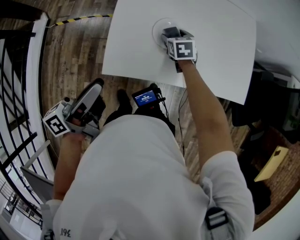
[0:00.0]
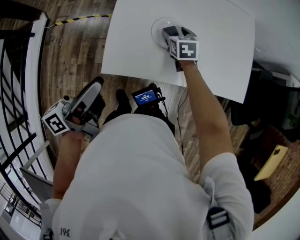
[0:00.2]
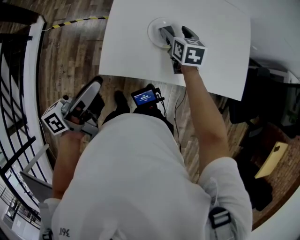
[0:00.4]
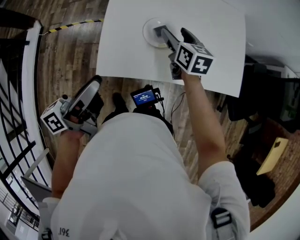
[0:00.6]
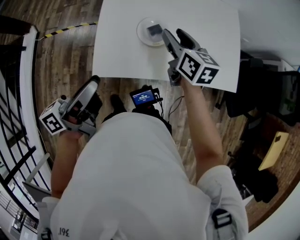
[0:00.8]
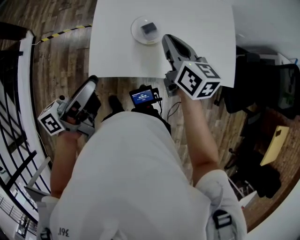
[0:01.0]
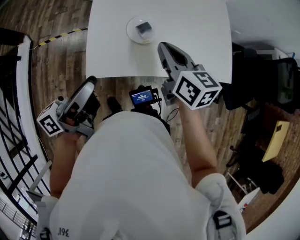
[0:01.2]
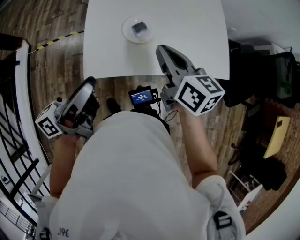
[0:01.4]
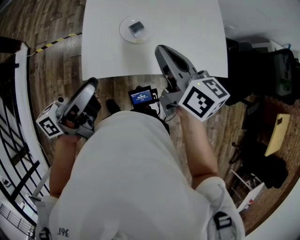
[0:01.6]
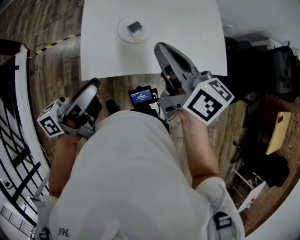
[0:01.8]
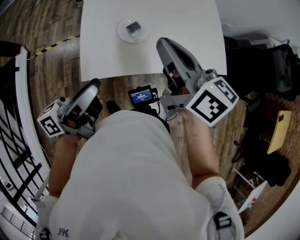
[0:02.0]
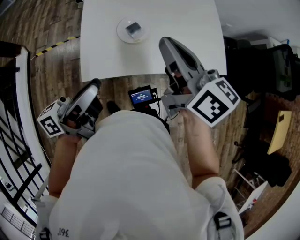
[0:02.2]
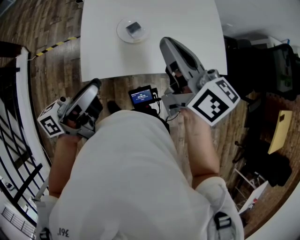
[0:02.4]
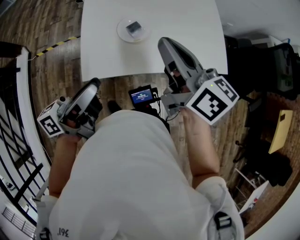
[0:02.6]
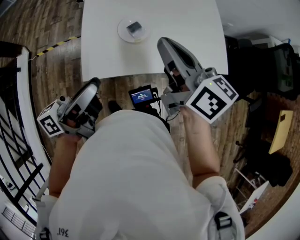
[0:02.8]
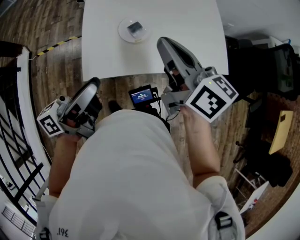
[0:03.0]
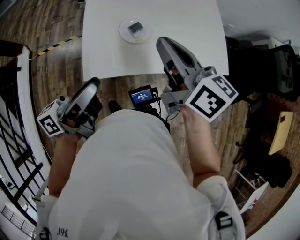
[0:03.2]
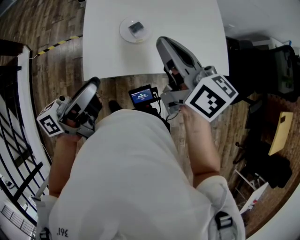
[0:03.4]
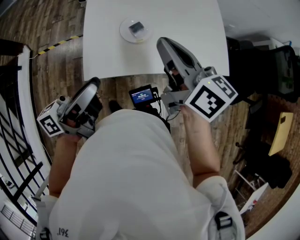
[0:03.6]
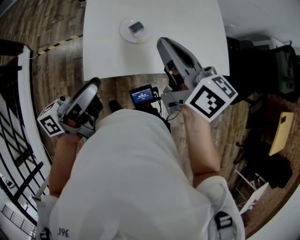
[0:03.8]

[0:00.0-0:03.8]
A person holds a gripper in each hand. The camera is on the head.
0:00.0 to 0:01.2: The right gripper shifts some 25 cm upward and backward, points its fingers about 30 degrees further upward, and closes up; the left gripper ends up approximately 5 cm from where it was.
0:01.2 to 0:02.6: The right gripper travels upward by approximately 10 cm.
0:02.6 to 0:03.8: The grippers move only a little.

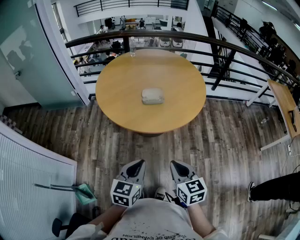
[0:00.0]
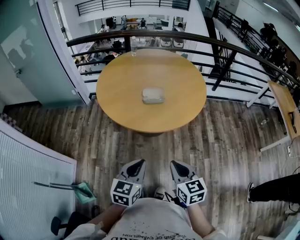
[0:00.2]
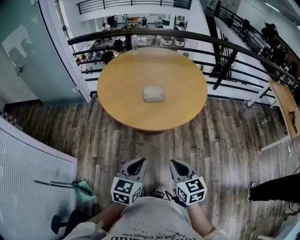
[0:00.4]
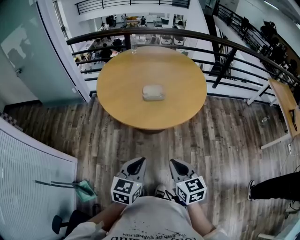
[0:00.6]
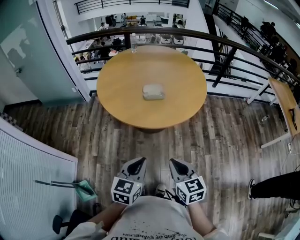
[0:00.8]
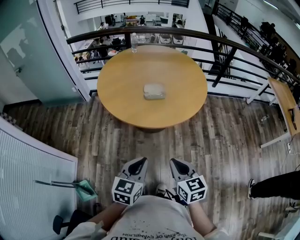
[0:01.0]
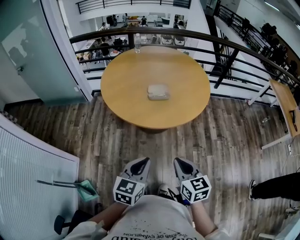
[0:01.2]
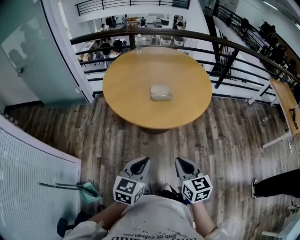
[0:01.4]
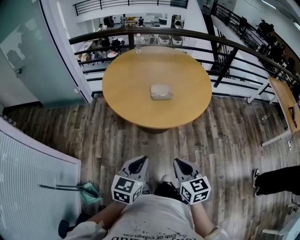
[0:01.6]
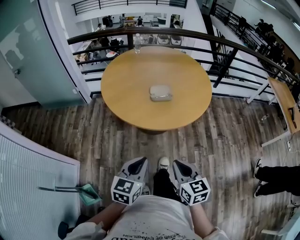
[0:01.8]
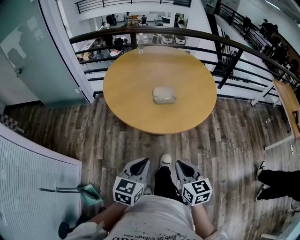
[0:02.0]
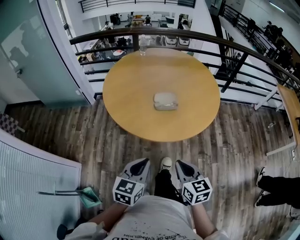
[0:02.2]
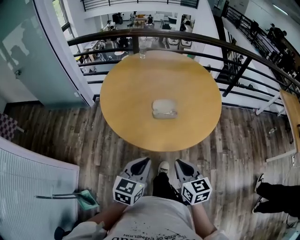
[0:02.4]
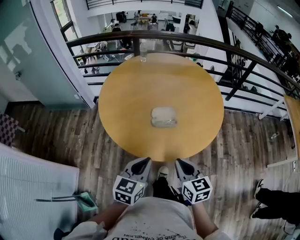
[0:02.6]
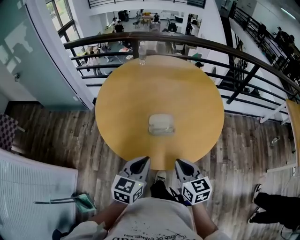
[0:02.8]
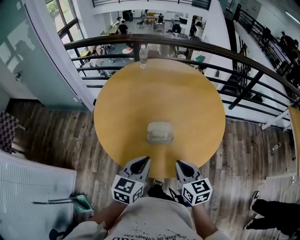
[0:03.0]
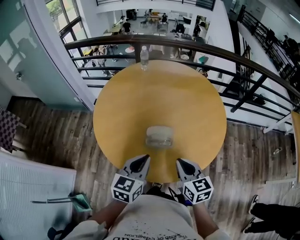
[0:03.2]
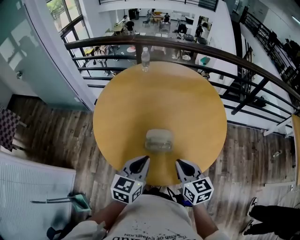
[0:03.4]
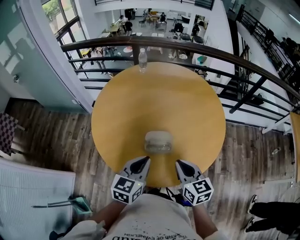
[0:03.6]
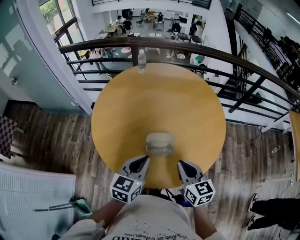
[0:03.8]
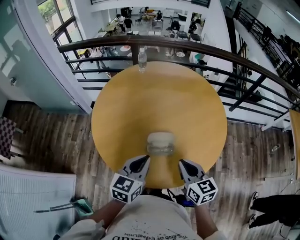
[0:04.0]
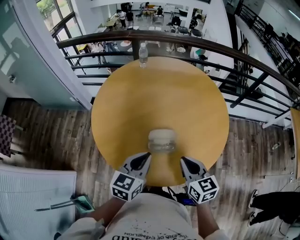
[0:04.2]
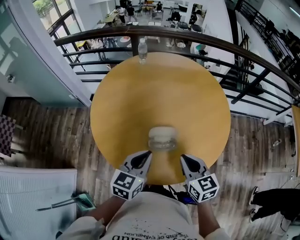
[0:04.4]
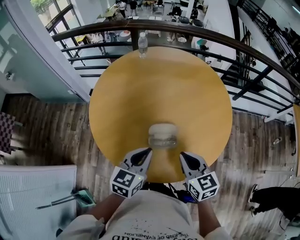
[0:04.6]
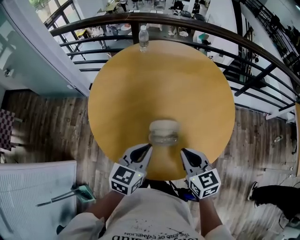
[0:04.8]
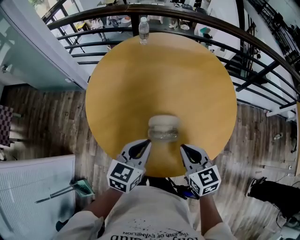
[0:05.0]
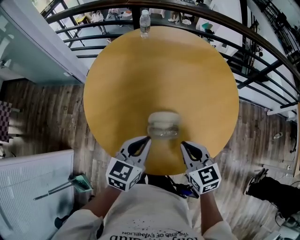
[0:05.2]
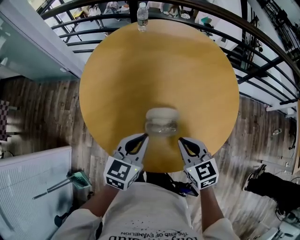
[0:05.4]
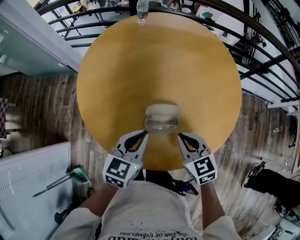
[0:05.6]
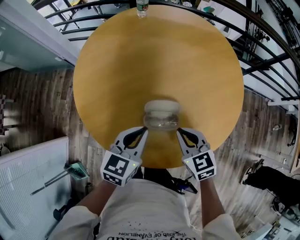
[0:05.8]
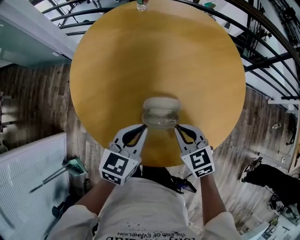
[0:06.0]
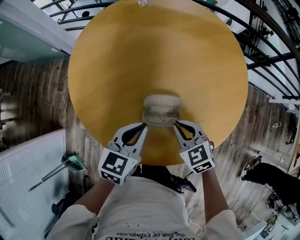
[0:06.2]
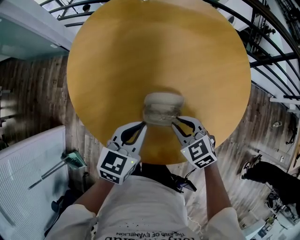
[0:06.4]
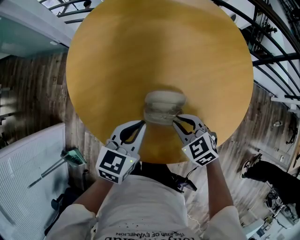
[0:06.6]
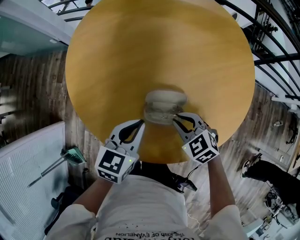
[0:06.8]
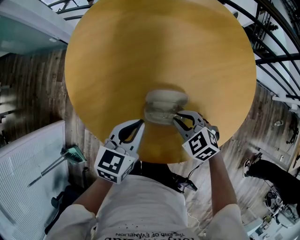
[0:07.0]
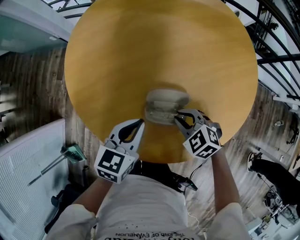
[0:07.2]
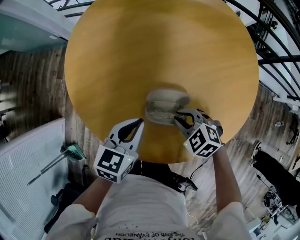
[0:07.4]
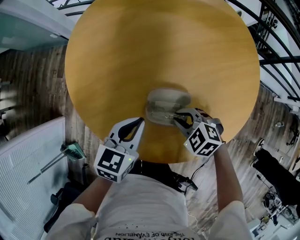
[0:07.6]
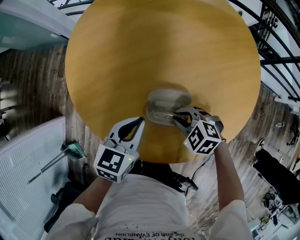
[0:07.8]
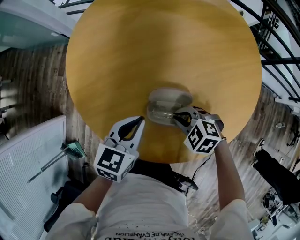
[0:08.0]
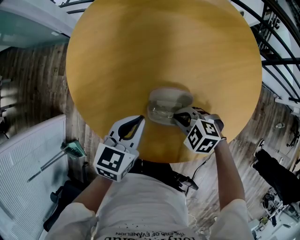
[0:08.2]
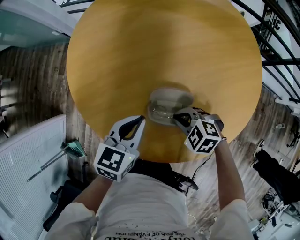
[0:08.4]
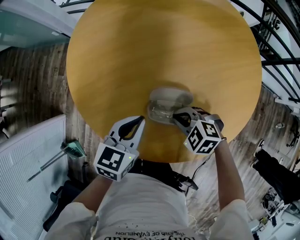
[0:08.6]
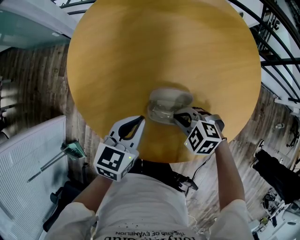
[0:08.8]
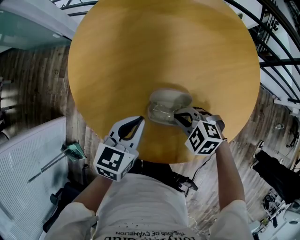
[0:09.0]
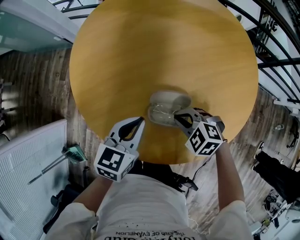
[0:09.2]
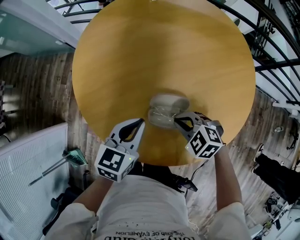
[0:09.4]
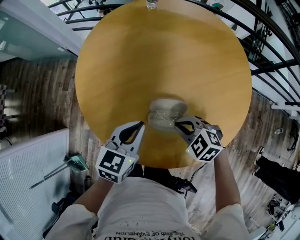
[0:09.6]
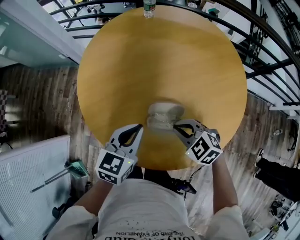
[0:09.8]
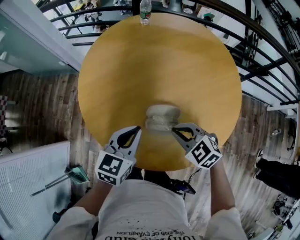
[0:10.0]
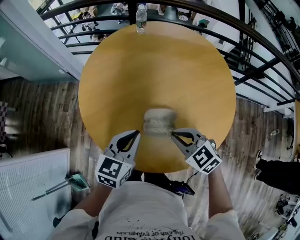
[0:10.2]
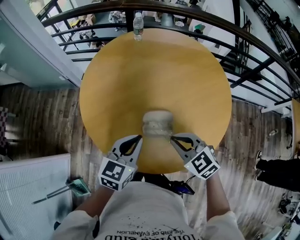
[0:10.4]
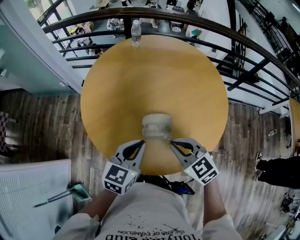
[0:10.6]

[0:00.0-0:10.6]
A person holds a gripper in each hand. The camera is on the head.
0:00.0 to 0:01.6: The two grippers go roughly 5 cm to the left.
0:01.6 to 0:03.0: The two grippers go about 35 cm forward.
0:03.0 to 0:04.6: Both grippers move forward, approximately 10 cm.
0:04.6 to 0:06.0: Both grippers move downward and forward, some 15 cm. The right gripper changes its angle by about 20 degrees.
0:06.0 to 0:07.6: The left gripper goes some 5 cm downward. The right gripper travels downward by approximately 10 cm, and changes its angle by roughly 40 degrees.
0:07.6 to 0:09.0: There are only small adjustments of the grippers.
0:09.0 to 0:10.6: Both grippers travel together upward and backward, roughly 20 cm. The right gripper turns by roughly 40 degrees.

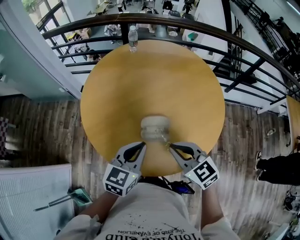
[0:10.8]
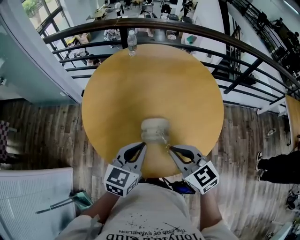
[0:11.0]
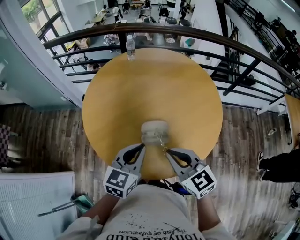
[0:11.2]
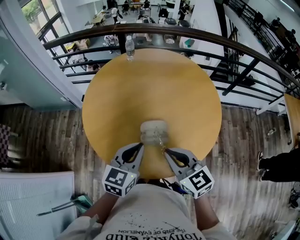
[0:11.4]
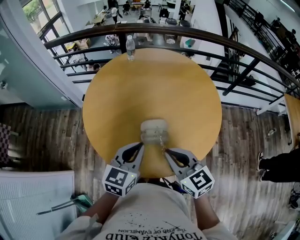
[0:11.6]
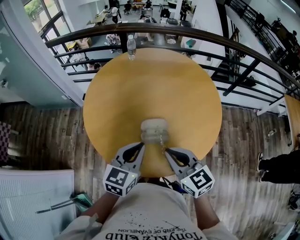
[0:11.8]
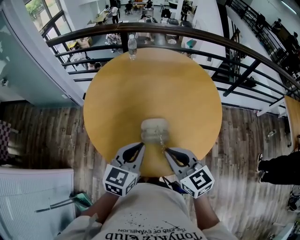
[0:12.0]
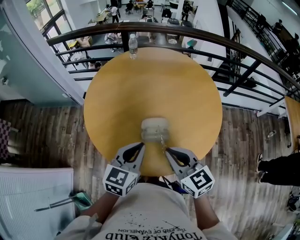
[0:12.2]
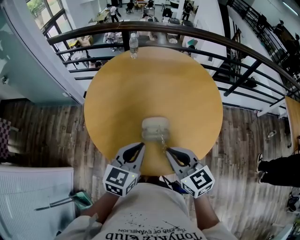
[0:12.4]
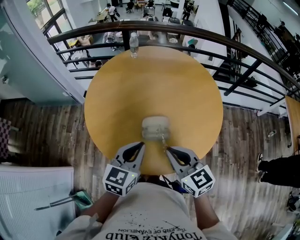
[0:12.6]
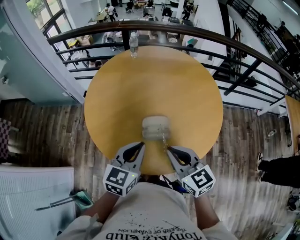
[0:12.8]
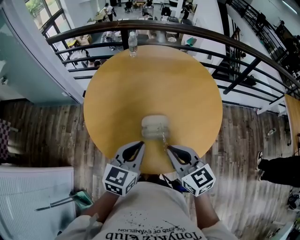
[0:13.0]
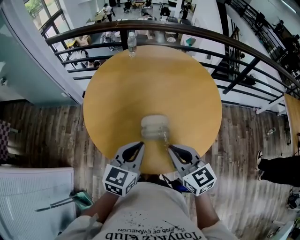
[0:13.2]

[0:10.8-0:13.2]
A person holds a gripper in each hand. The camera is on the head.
0:10.8 to 0:12.0: The right gripper changes place by some 5 cm.
0:12.0 to 0:13.2: The two grippers keep their place.

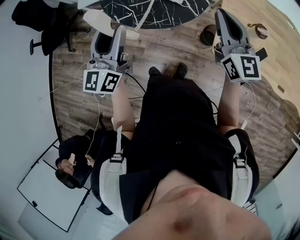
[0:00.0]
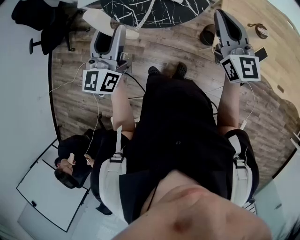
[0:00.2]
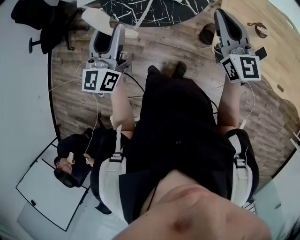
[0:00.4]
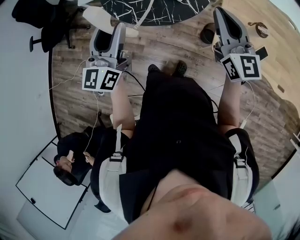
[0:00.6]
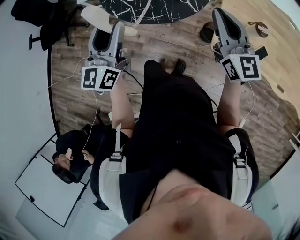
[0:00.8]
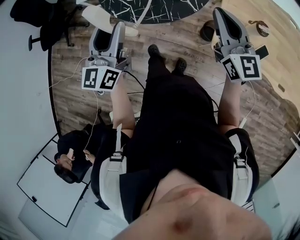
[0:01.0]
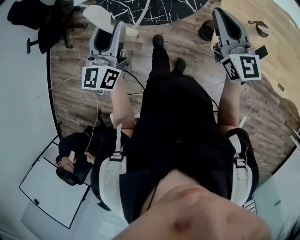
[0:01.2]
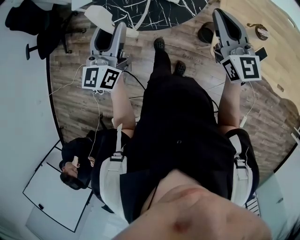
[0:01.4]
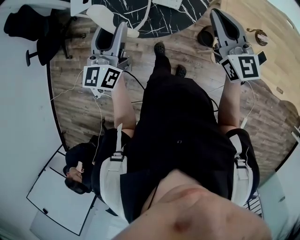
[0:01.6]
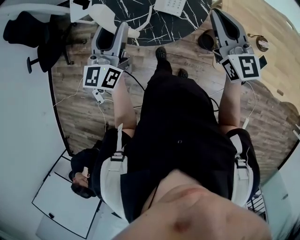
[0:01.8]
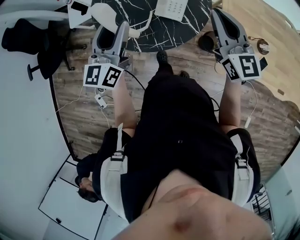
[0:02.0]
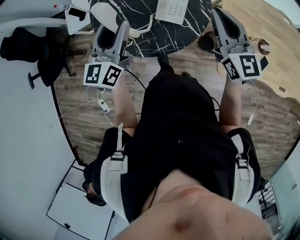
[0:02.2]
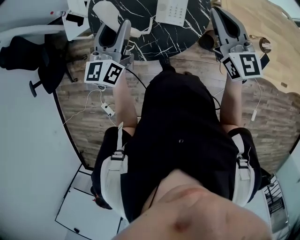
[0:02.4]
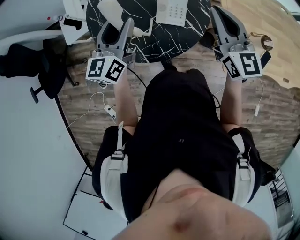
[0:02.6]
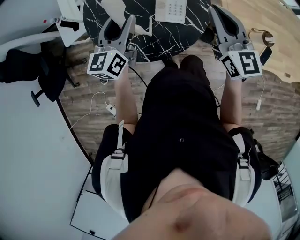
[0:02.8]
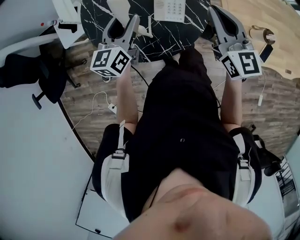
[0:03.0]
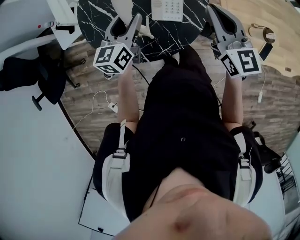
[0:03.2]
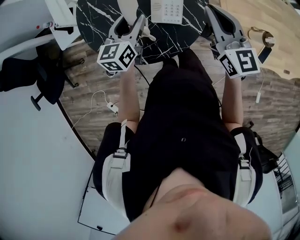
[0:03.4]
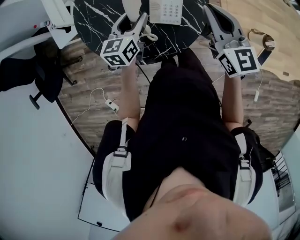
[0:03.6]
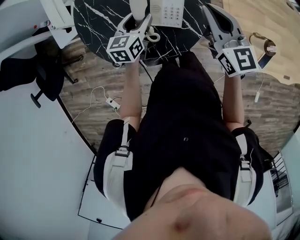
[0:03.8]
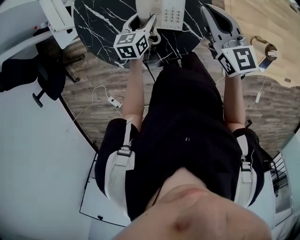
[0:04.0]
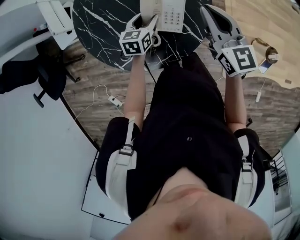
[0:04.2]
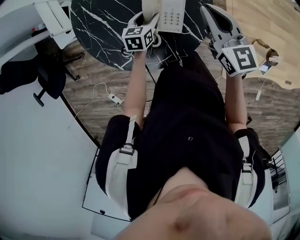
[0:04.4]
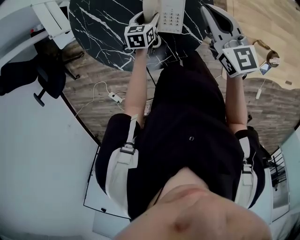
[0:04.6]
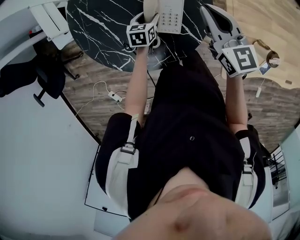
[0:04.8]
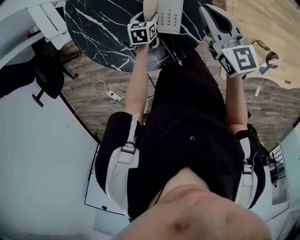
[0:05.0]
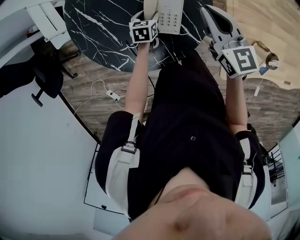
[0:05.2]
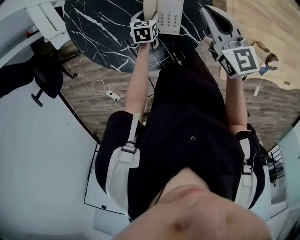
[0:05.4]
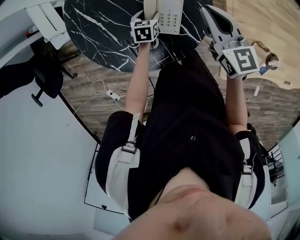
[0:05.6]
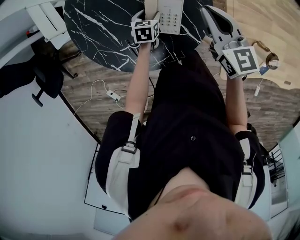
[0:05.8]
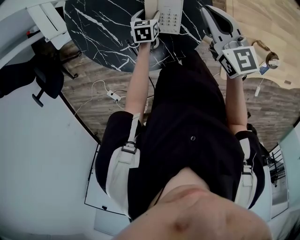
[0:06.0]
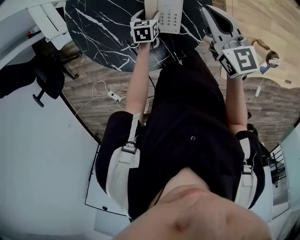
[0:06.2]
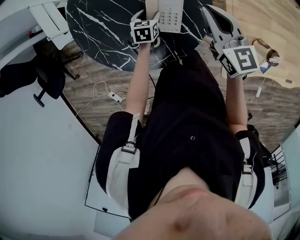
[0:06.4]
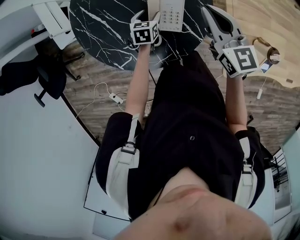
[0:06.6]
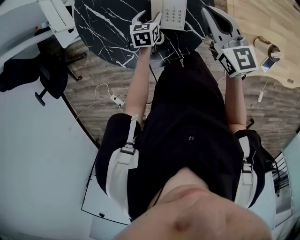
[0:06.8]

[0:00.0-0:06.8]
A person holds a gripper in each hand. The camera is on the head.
0:00.0 to 0:01.4: The left gripper ends up about 5 cm from where it was.
0:01.4 to 0:02.8: The right gripper is displaced forward and to the left by some 20 cm; the left gripper goes about 25 cm forward, and rotates some 20 degrees.
0:02.8 to 0:04.0: The left gripper is displaced downward, forward and to the right by approximately 25 cm, and rotates about 30 degrees. The right gripper travels forward and downward by roughly 15 cm.
0:04.0 to 0:05.4: The left gripper moves downward, about 15 cm, and turns by roughly 20 degrees. The right gripper heads downward and forward, covering approximately 10 cm.
0:05.4 to 0:06.8: The right gripper moves backward, approximately 5 cm, while the left gripper is displaced upward by about 10 cm.
